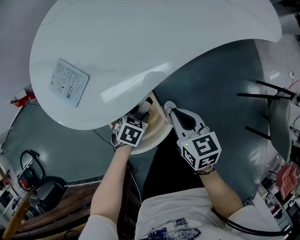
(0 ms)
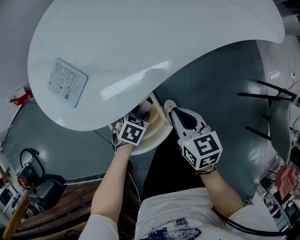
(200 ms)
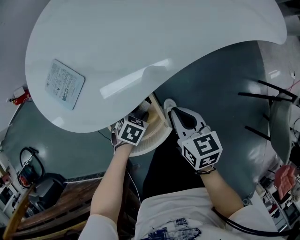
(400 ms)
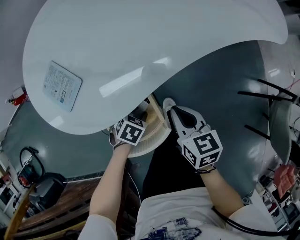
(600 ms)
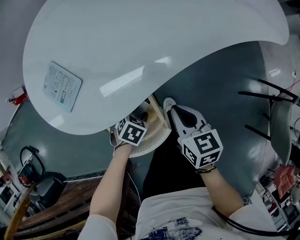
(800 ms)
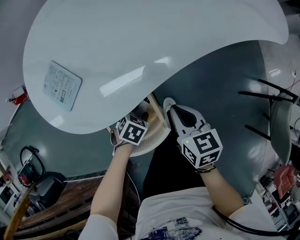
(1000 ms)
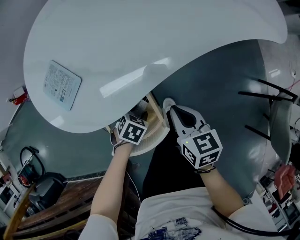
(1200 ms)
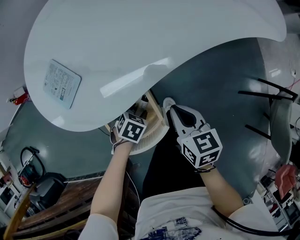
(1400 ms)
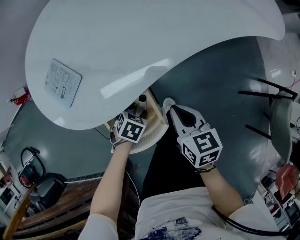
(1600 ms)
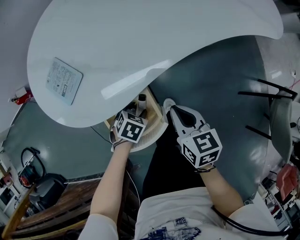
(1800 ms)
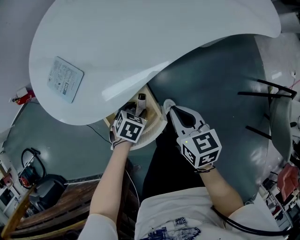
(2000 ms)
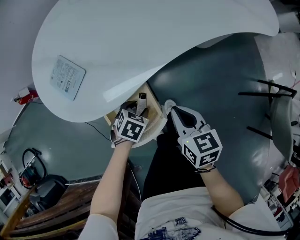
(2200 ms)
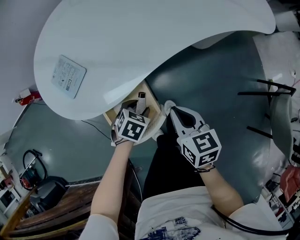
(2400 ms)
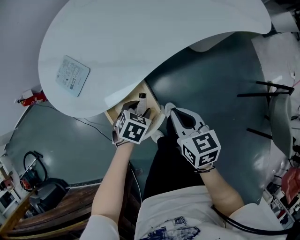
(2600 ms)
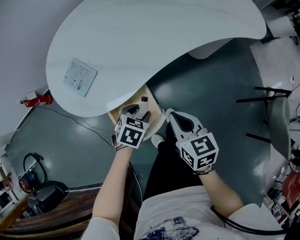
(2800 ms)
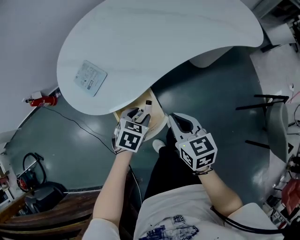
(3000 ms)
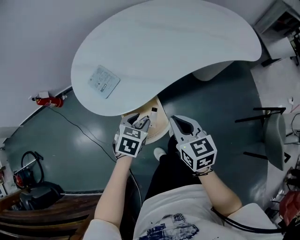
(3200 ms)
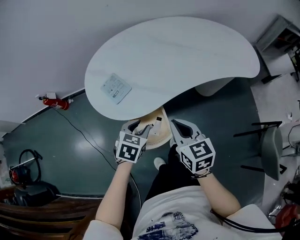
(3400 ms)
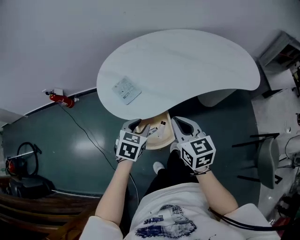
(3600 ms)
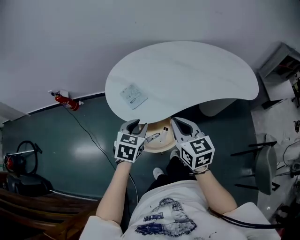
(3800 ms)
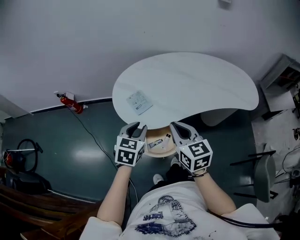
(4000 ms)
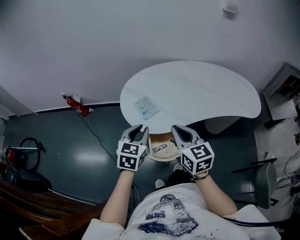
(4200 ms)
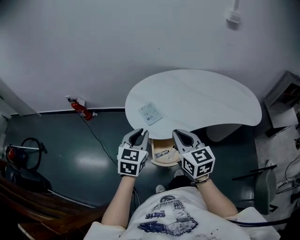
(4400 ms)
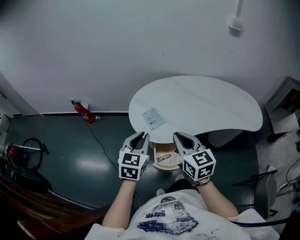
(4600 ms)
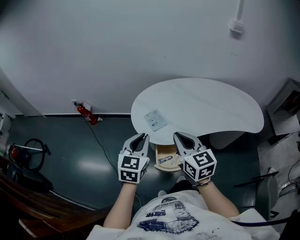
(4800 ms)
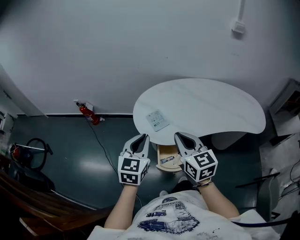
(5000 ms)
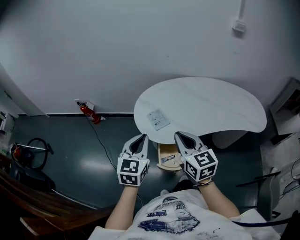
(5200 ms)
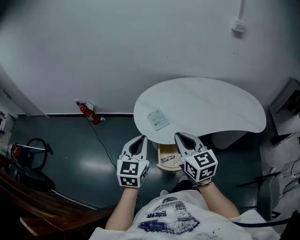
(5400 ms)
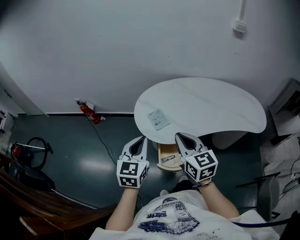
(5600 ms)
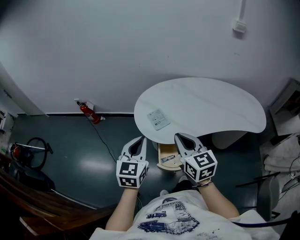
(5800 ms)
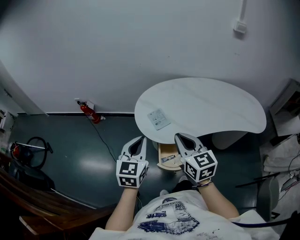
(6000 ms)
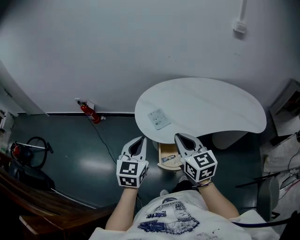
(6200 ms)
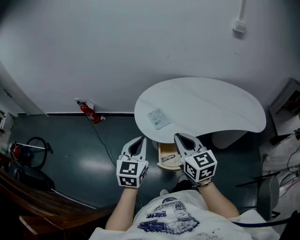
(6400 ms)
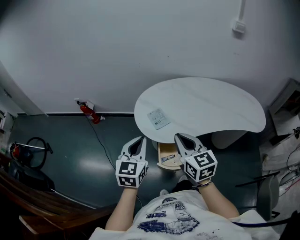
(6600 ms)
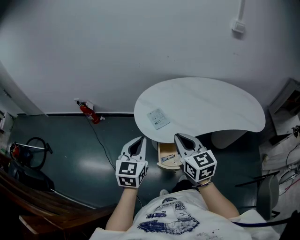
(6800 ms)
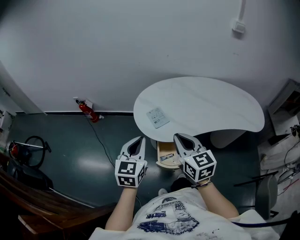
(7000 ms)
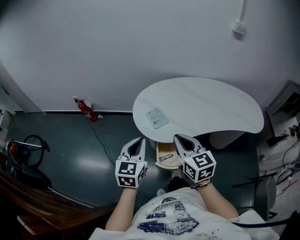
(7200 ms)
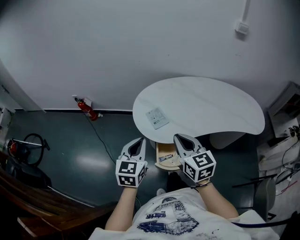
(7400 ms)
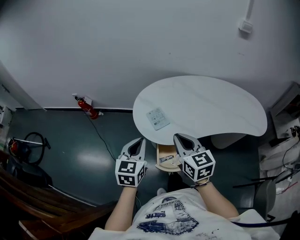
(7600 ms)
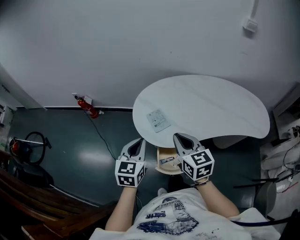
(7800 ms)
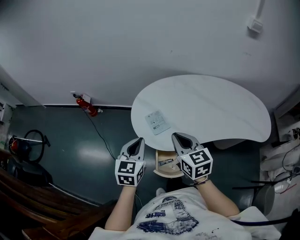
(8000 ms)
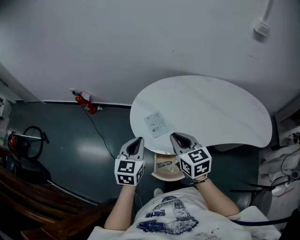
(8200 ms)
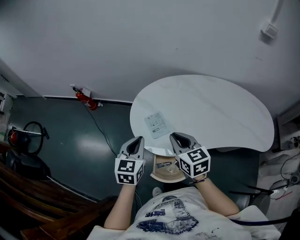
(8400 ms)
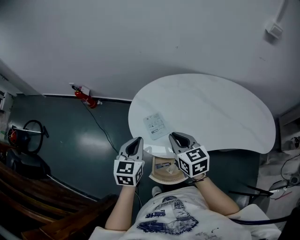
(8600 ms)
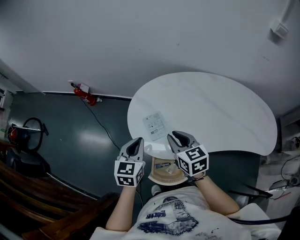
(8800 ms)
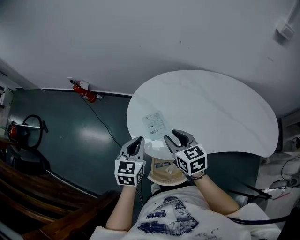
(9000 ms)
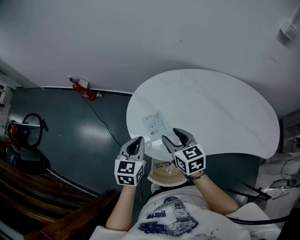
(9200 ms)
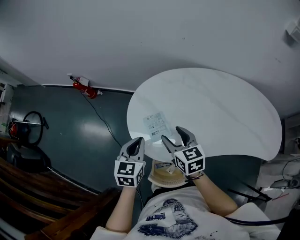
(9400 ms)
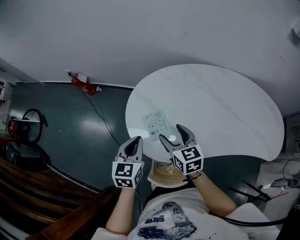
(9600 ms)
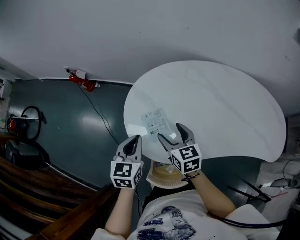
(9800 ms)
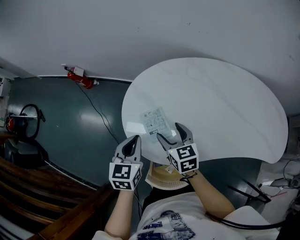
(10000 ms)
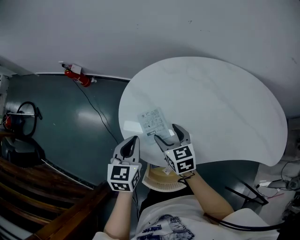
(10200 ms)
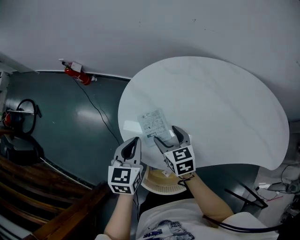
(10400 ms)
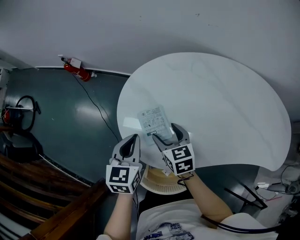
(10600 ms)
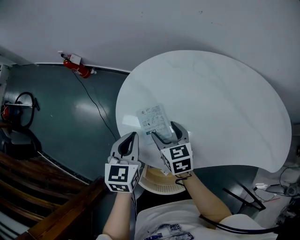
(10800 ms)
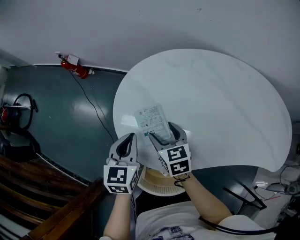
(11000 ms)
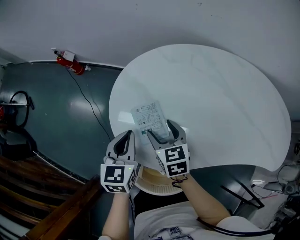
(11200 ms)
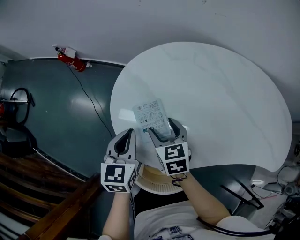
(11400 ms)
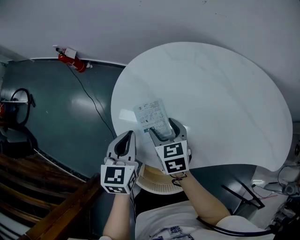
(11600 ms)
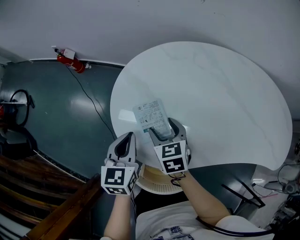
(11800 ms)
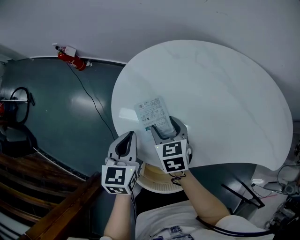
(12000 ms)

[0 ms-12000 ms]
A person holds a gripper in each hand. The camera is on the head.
0 ms to 1600 ms: The grippers make only small movements.
1600 ms to 3000 ms: Both grippers move upward, roughly 15 cm.
3000 ms to 4400 ms: Both grippers move upward and to the left, roughly 35 cm. The left gripper tilts its fingers roughly 40 degrees upward, and closes its fingers, while the right gripper turns by approximately 30 degrees.
4400 ms to 6000 ms: The left gripper shifts about 5 cm upward.
6000 ms to 7600 ms: The grippers make only small movements.
7600 ms to 9000 ms: Both grippers travel together forward and downward, about 20 cm.
9000 ms to 10400 ms: The left gripper is displaced downward by approximately 10 cm, while the right gripper heads downward and forward, covering some 15 cm, and opens.
10400 ms to 12000 ms: The grippers make only small movements.

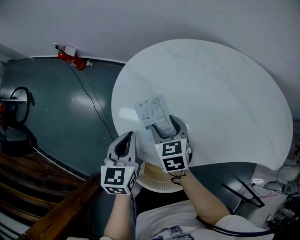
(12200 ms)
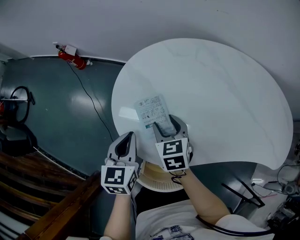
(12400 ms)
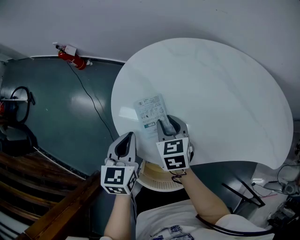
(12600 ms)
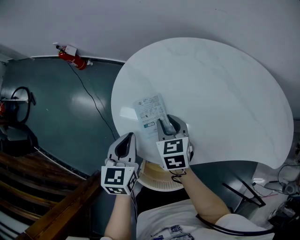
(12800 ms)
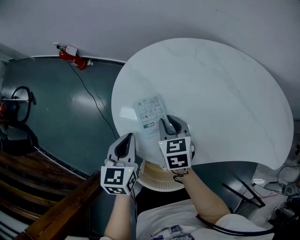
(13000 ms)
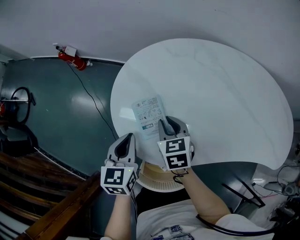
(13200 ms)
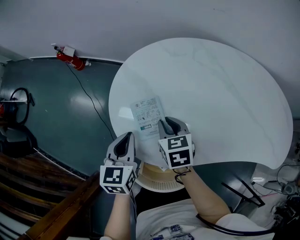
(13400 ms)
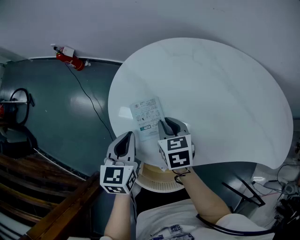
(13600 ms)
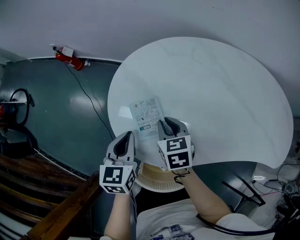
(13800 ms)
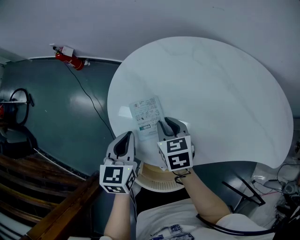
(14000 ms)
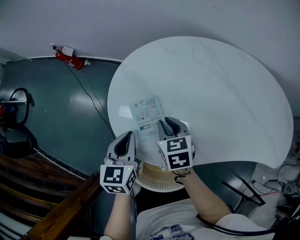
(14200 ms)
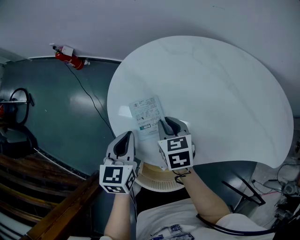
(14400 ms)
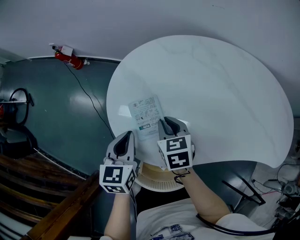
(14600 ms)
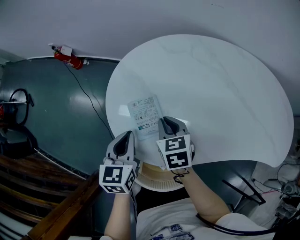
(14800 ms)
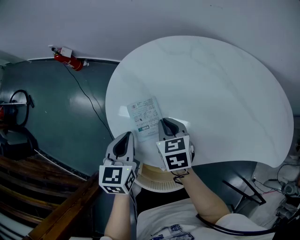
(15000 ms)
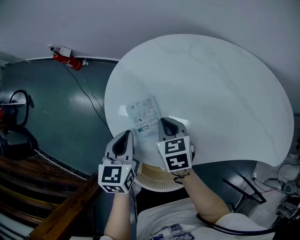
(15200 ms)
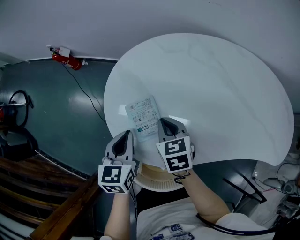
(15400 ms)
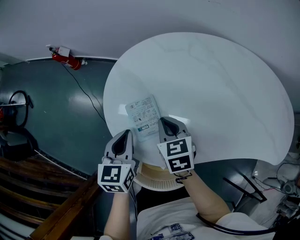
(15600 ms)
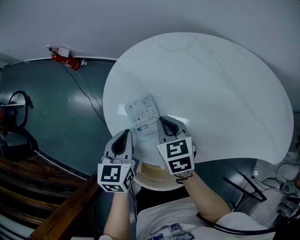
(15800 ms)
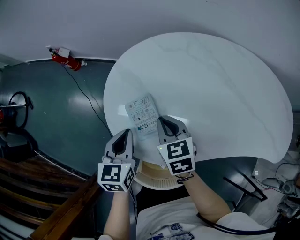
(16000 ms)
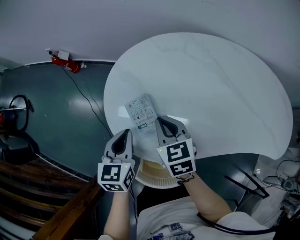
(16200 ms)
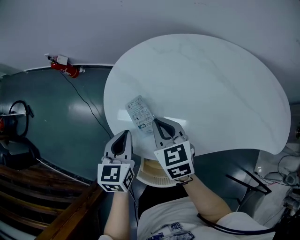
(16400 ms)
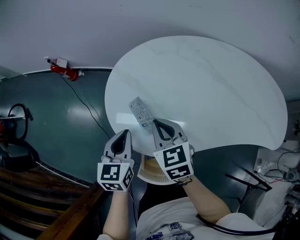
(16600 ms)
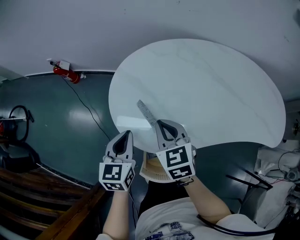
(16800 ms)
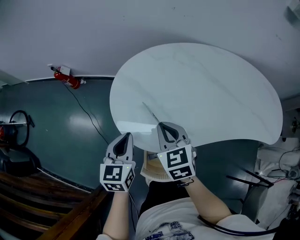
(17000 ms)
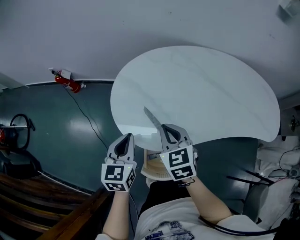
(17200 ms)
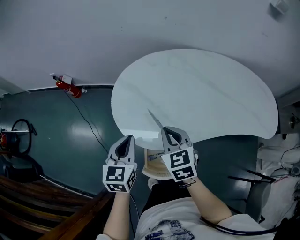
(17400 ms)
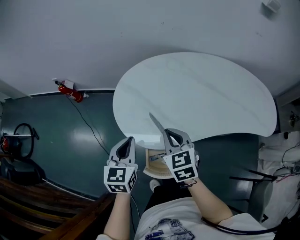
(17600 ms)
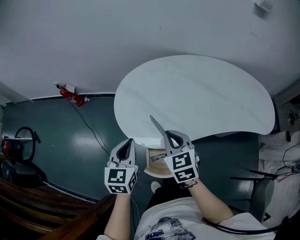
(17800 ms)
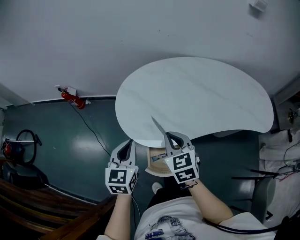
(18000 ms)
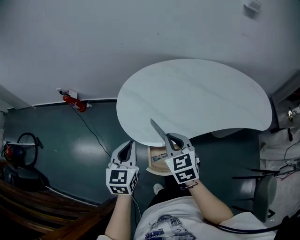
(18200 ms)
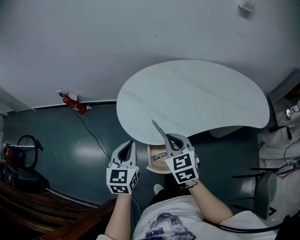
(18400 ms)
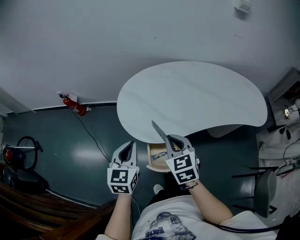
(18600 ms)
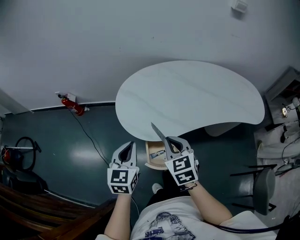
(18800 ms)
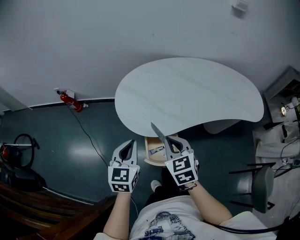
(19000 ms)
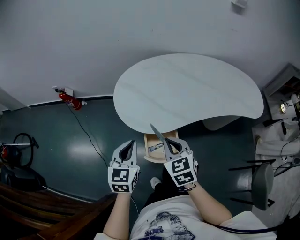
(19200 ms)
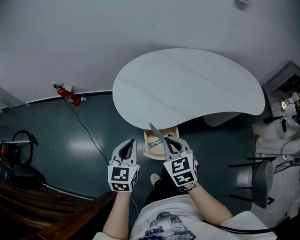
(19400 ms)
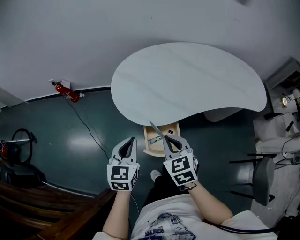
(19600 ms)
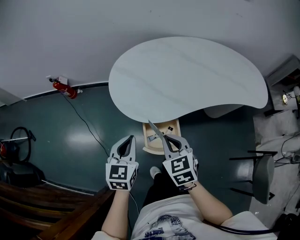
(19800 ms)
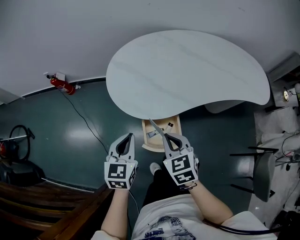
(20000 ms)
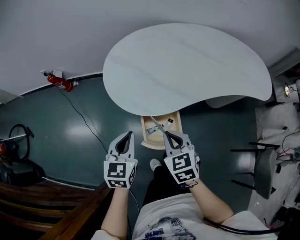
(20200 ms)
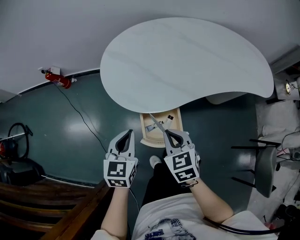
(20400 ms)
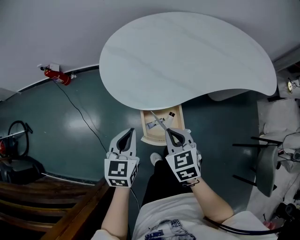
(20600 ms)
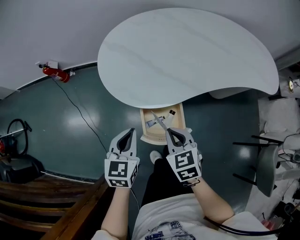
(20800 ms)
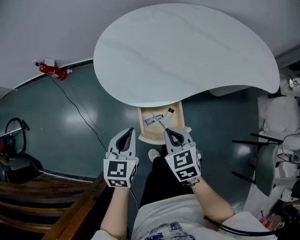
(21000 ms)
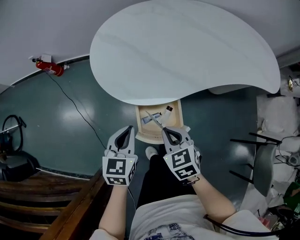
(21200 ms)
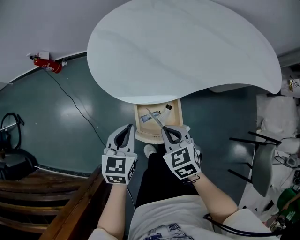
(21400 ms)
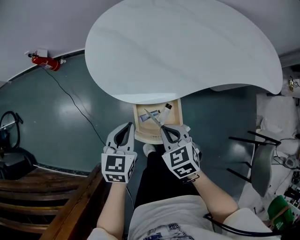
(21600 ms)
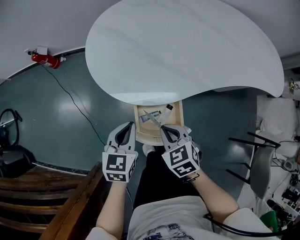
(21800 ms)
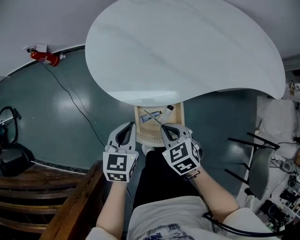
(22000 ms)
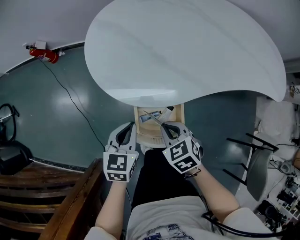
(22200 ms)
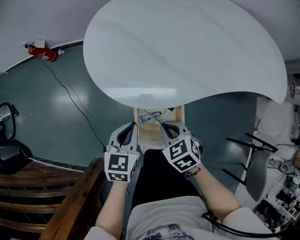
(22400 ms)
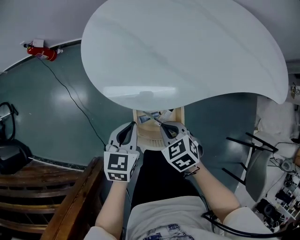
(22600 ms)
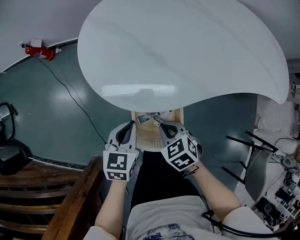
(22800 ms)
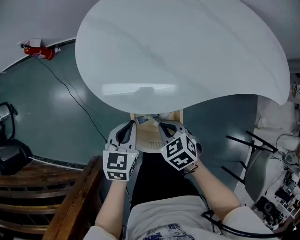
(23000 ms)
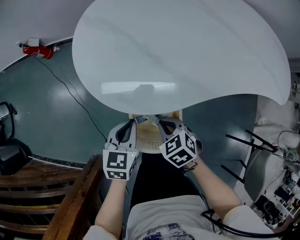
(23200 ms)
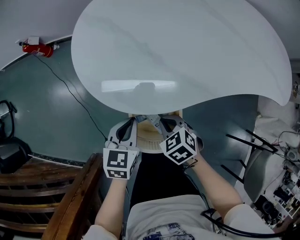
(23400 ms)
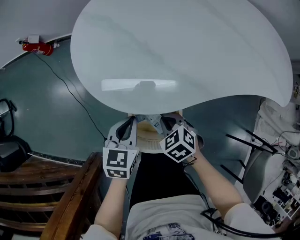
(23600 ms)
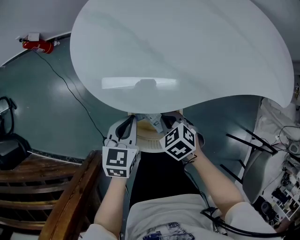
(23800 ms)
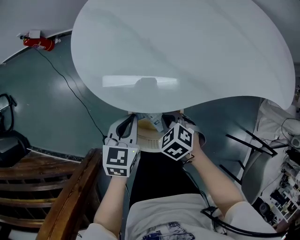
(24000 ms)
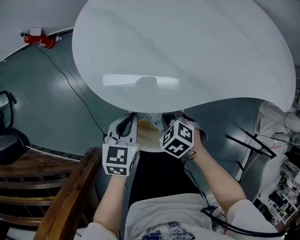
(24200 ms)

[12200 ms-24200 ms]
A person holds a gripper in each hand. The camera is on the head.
12200 ms to 13800 ms: The right gripper closes its fingers.
13800 ms to 15200 ms: Both grippers stay about where they are.
15200 ms to 16600 ms: The right gripper goes roughly 10 cm upward.
16600 ms to 18200 ms: Both grippers travel together backward and upward, about 15 cm.
18200 ms to 19800 ms: Both grippers move backward, roughly 10 cm.
19800 ms to 21200 ms: The grippers both shift downward by about 10 cm.
21200 ms to 22600 ms: Both grippers travel together downward, about 5 cm.
22600 ms to 24200 ms: The right gripper heads downward, covering approximately 5 cm, and swivels about 20 degrees.
